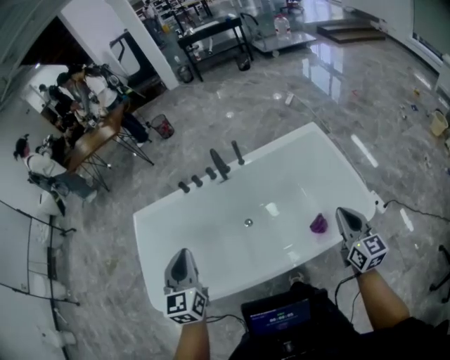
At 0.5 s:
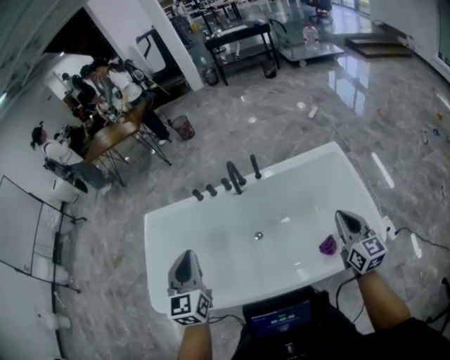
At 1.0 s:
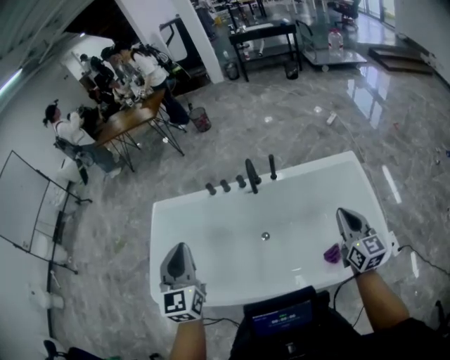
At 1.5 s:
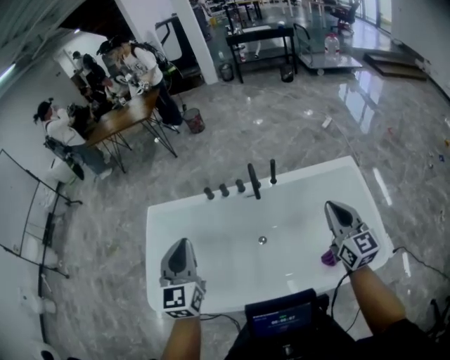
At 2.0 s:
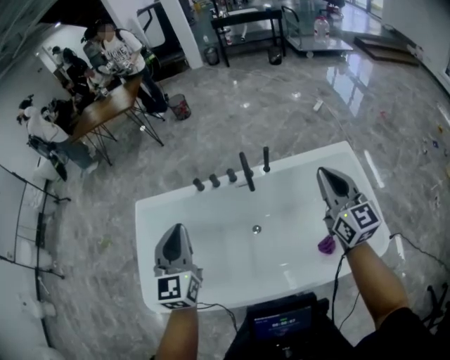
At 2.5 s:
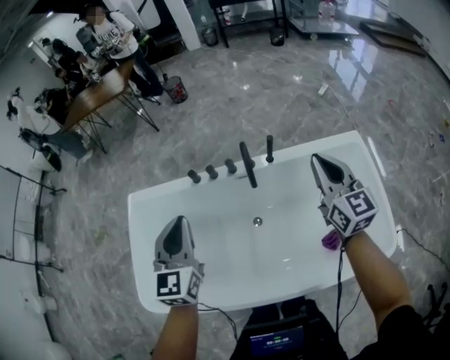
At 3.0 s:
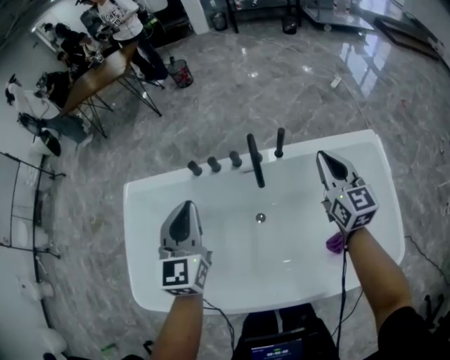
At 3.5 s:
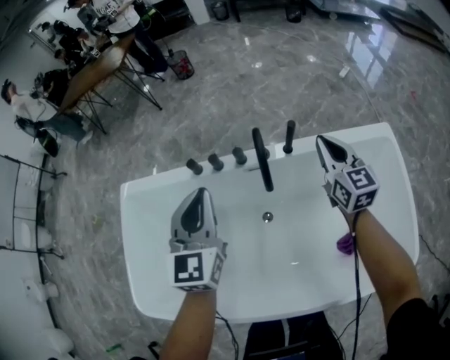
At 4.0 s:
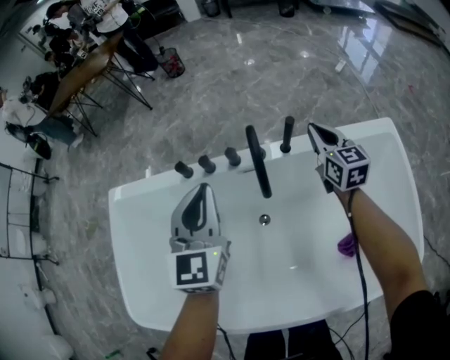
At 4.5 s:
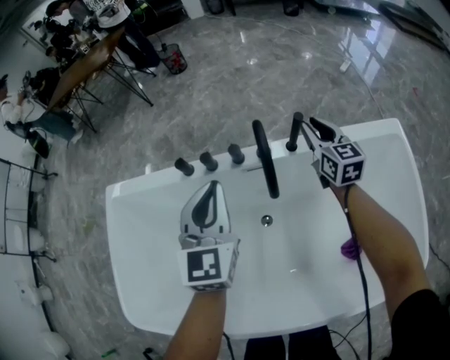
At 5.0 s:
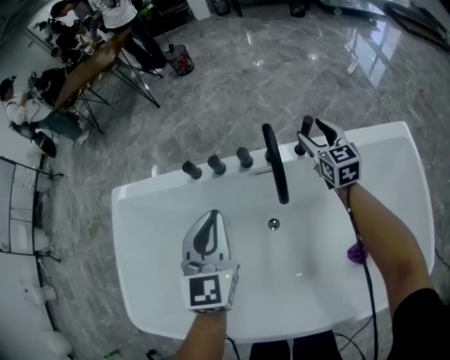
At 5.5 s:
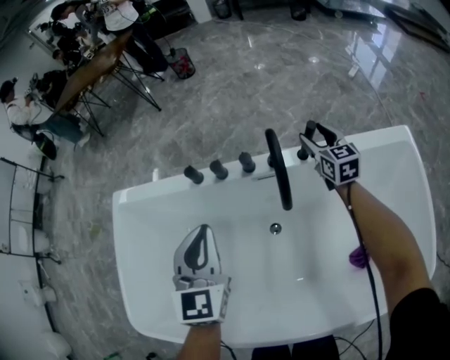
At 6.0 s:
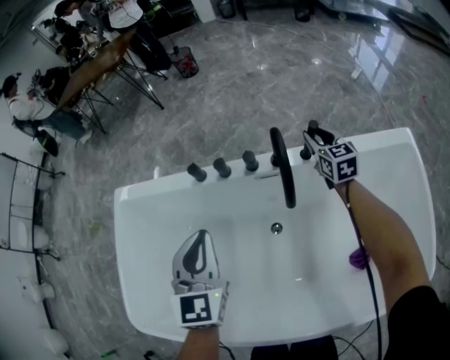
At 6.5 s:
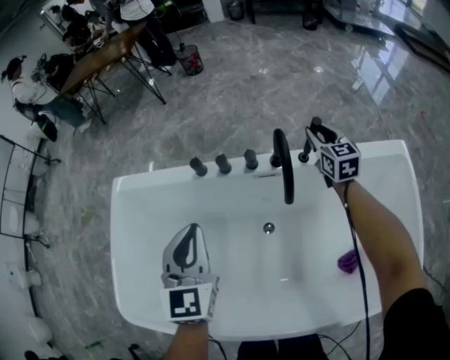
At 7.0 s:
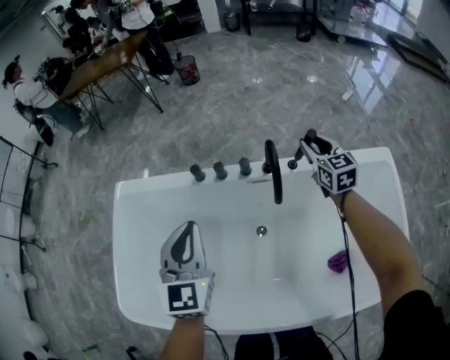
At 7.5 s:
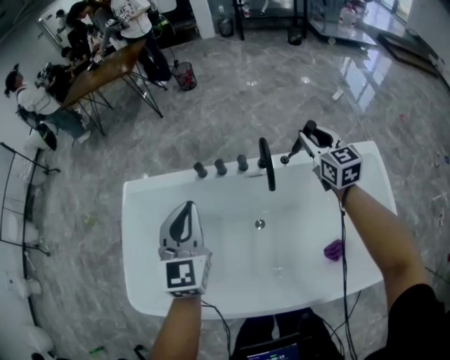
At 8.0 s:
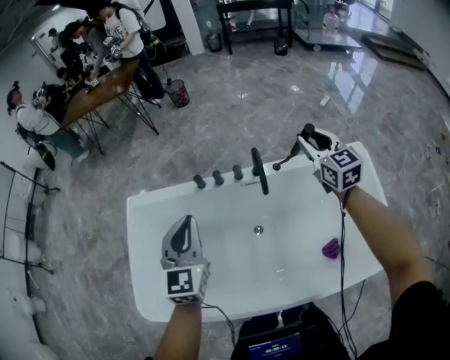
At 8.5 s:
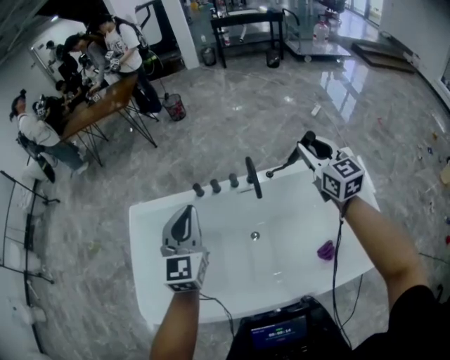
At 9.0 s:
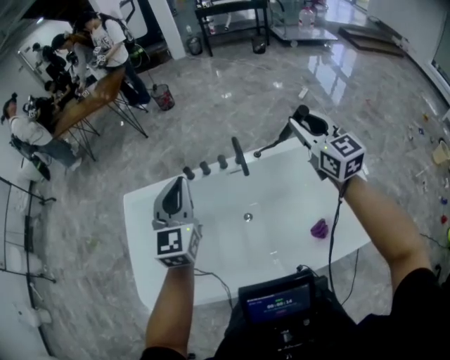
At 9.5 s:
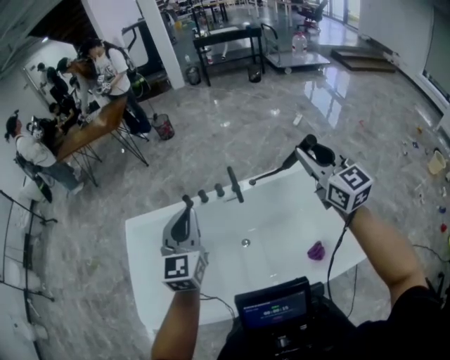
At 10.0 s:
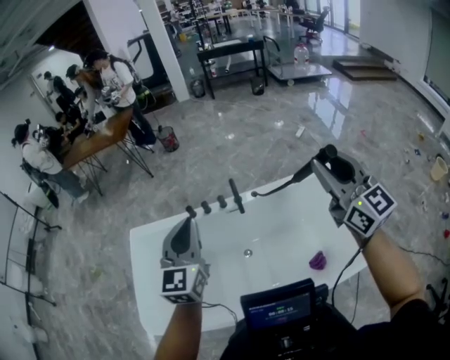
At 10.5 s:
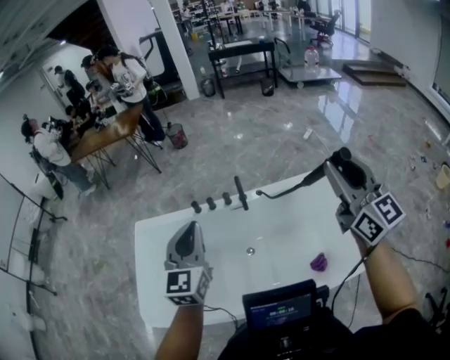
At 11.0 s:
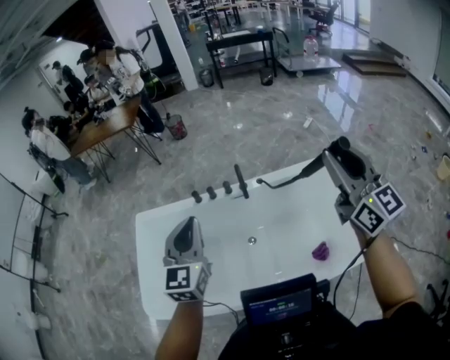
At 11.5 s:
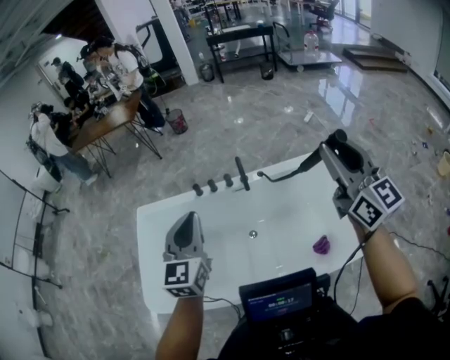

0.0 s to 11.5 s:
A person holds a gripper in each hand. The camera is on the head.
0.0 to 2.0 s: The right gripper moves forward and to the left, approximately 30 cm. The left gripper heads forward, covering about 15 cm.
2.0 to 4.0 s: The right gripper shifts some 50 cm downward and forward. Meanwhile the left gripper moves downward, forward and to the right, roughly 35 cm.
4.0 to 6.0 s: The left gripper moves to the left, downward and backward, some 10 cm, while the right gripper moves downward and forward, approximately 10 cm, and opens its fingers.
6.0 to 7.5 s: The right gripper goes about 25 cm upward and backward. The left gripper shifts roughly 15 cm upward.
7.5 to 9.5 s: The right gripper travels upward and backward by some 35 cm. Meanwhile the left gripper shifts about 15 cm upward and backward.
9.5 to 11.5 s: The right gripper moves backward and upward, about 15 cm, while the left gripper moves backward, approximately 10 cm.

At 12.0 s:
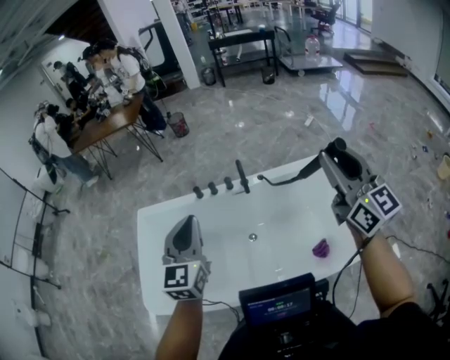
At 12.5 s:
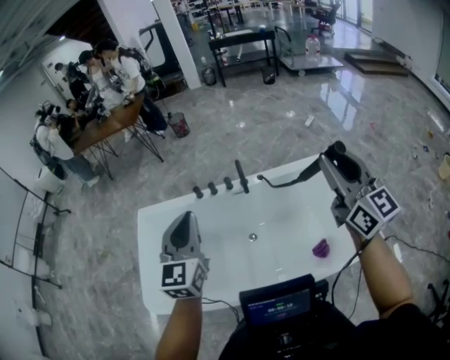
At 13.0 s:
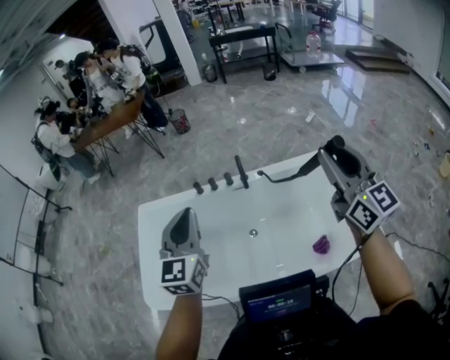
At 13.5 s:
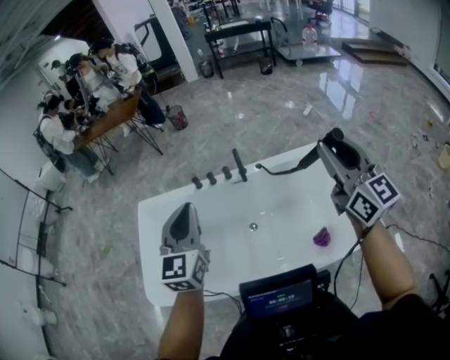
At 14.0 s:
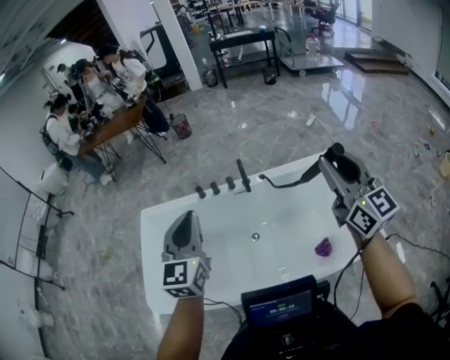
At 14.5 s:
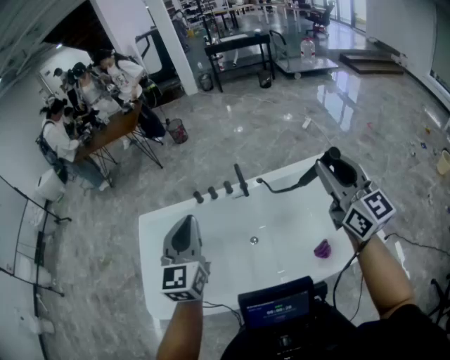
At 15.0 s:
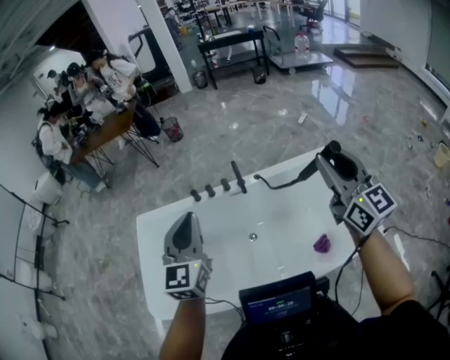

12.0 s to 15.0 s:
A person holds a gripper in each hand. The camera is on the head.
12.0 to 15.0 s: The grippers move only a little.

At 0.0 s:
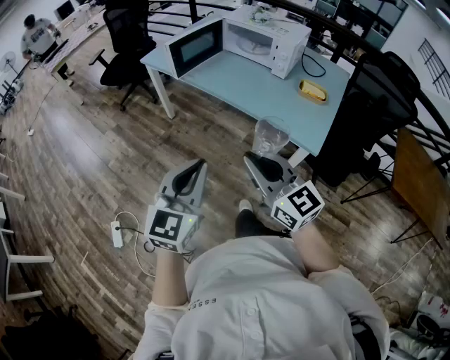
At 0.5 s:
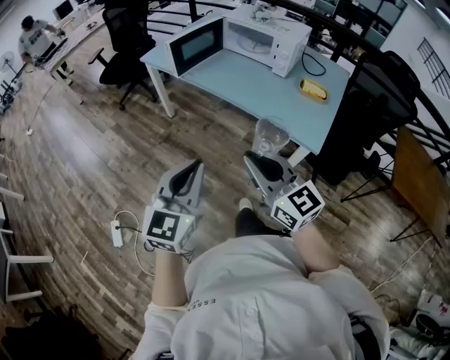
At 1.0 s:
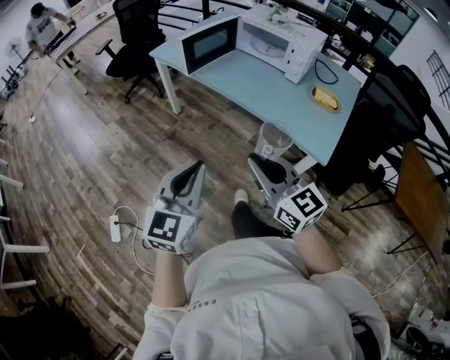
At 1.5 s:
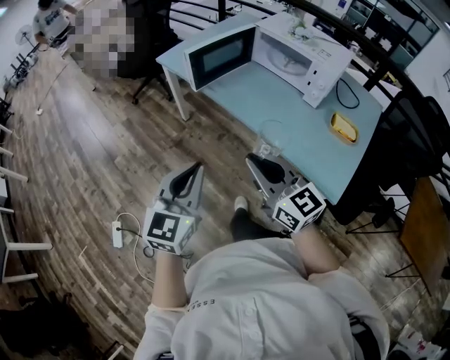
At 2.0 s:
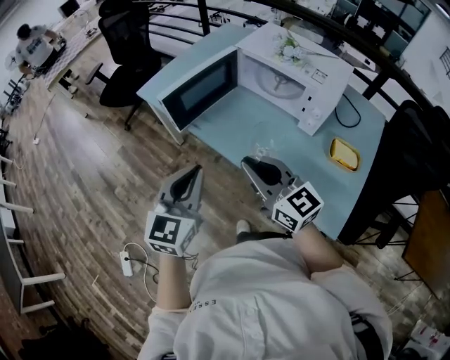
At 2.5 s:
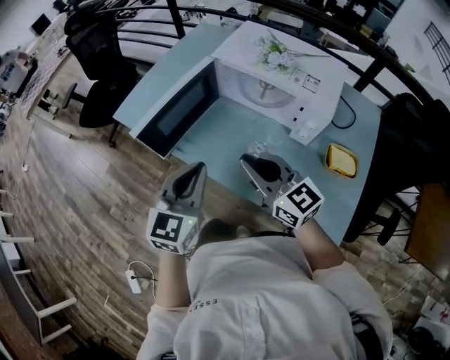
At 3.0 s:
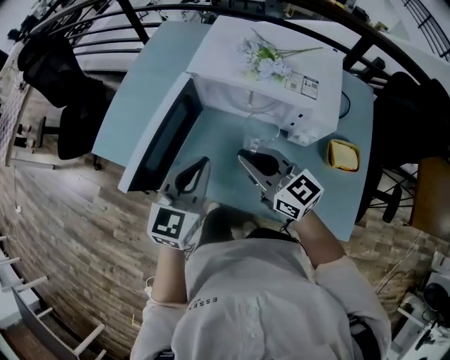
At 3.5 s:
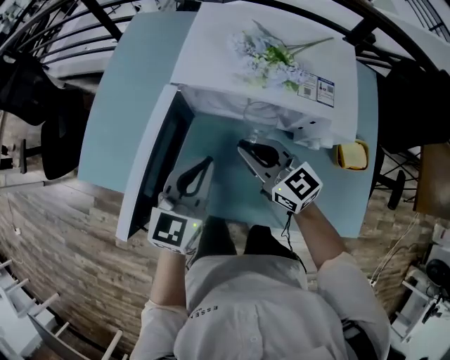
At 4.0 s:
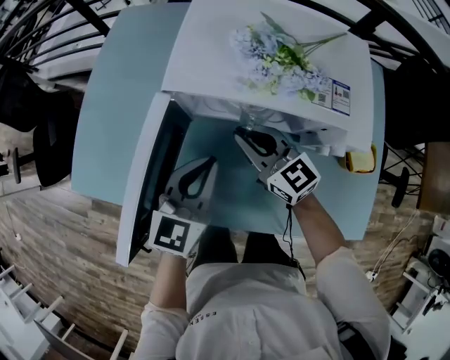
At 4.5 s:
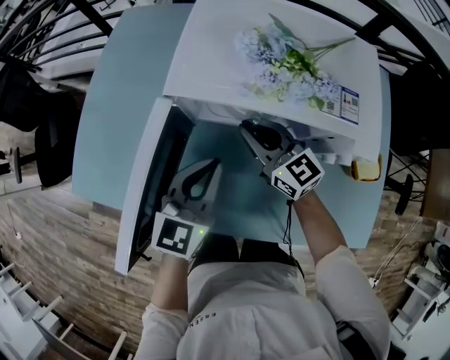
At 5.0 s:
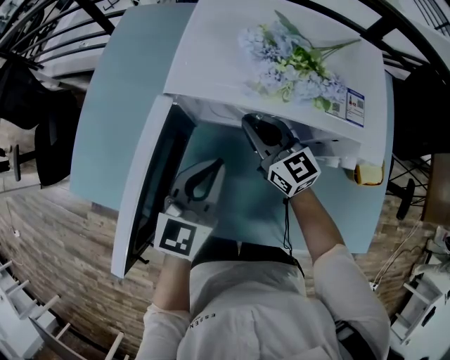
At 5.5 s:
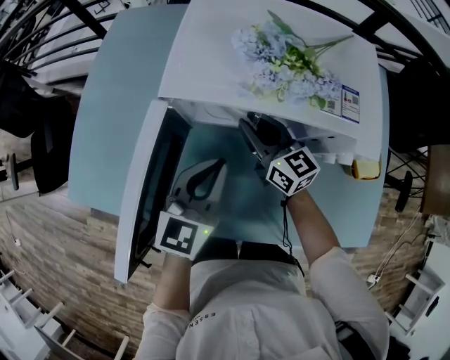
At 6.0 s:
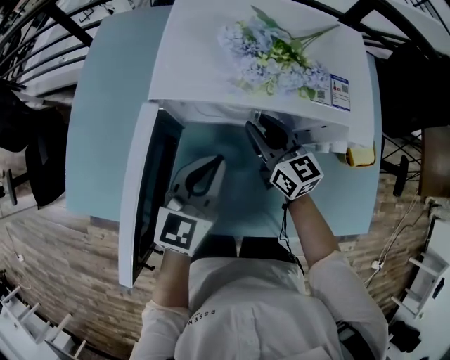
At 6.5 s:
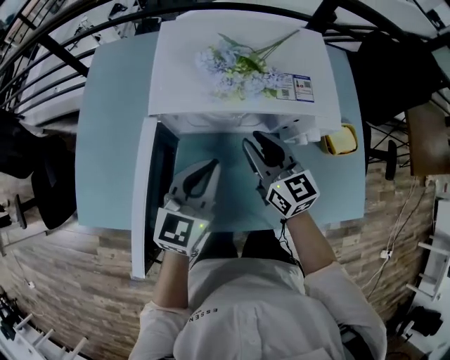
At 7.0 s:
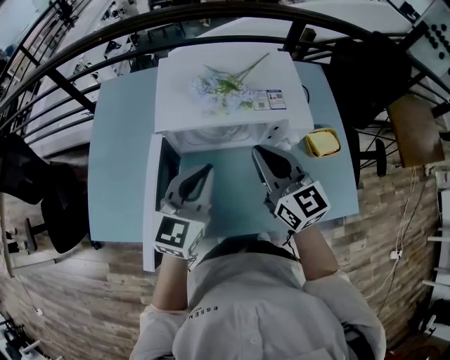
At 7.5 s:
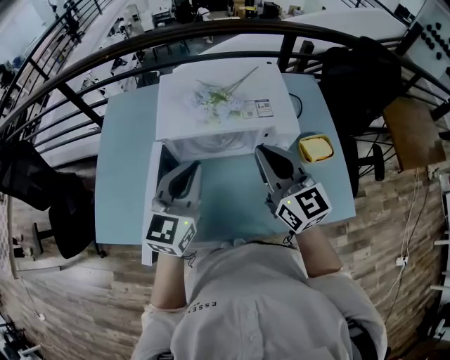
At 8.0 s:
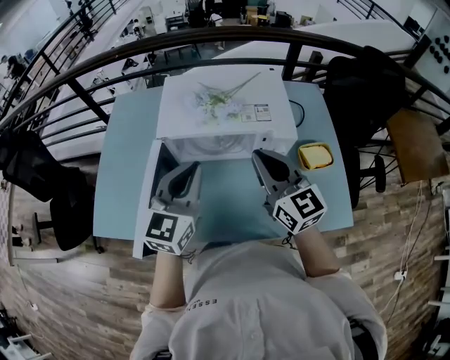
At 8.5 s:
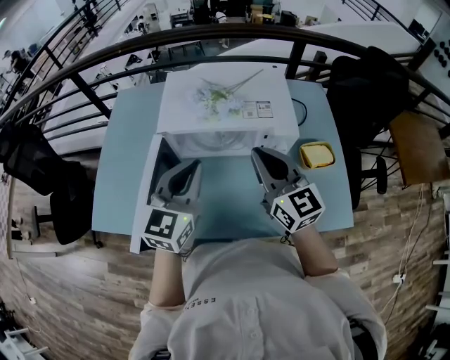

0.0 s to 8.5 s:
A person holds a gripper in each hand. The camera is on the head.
0.0 to 2.0 s: Both grippers move forward, approximately 35 cm.
2.0 to 4.0 s: The right gripper changes place by some 40 cm, and turns by some 20 degrees. The left gripper moves approximately 40 cm, and changes its angle by some 30 degrees.
4.0 to 6.5 s: The right gripper is displaced to the right by roughly 5 cm, swivels approximately 30 degrees, and opens.
6.5 to 8.5 s: The right gripper goes roughly 15 cm upward and backward, and closes its fingers. Meanwhile the left gripper is displaced upward by about 10 cm.

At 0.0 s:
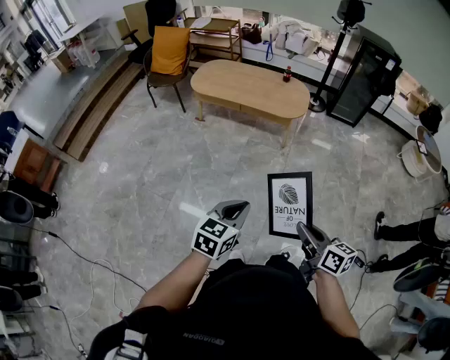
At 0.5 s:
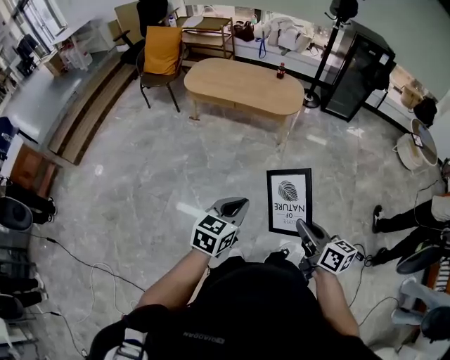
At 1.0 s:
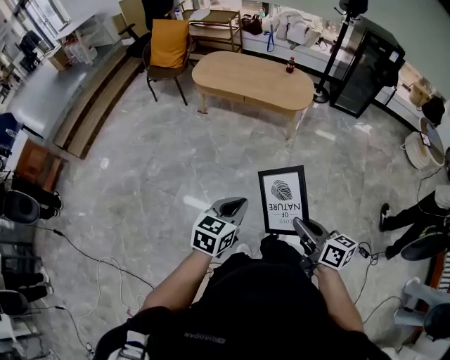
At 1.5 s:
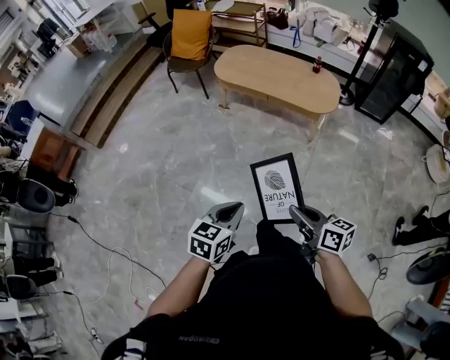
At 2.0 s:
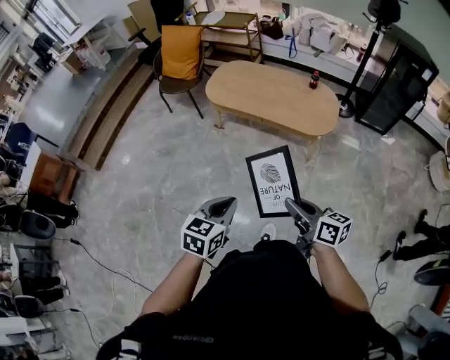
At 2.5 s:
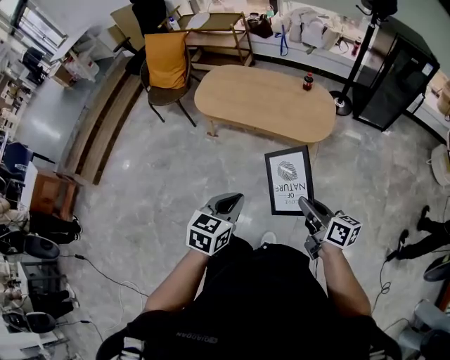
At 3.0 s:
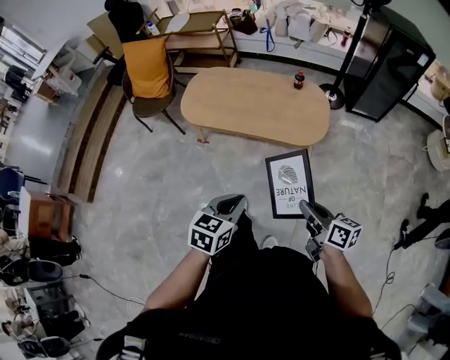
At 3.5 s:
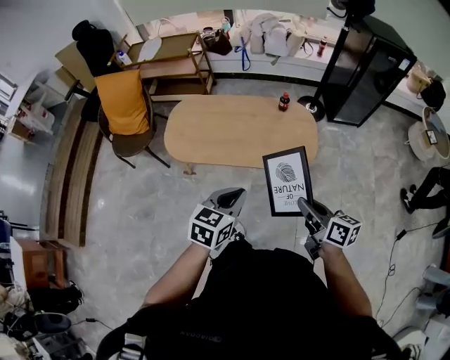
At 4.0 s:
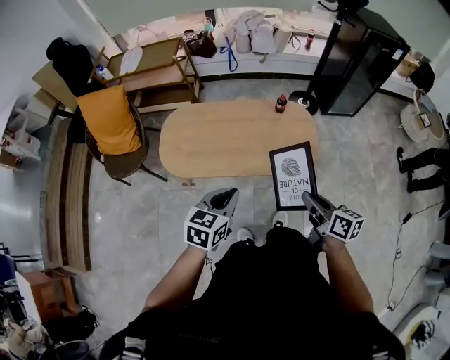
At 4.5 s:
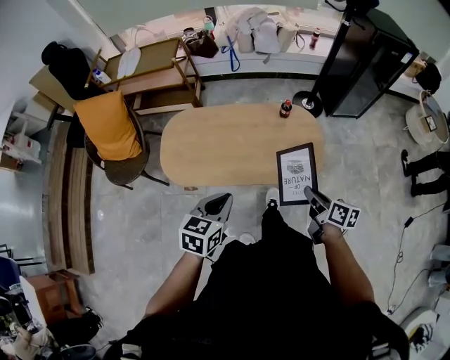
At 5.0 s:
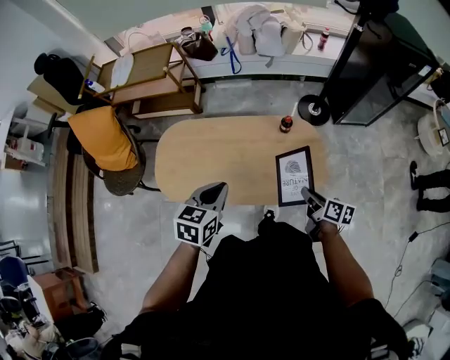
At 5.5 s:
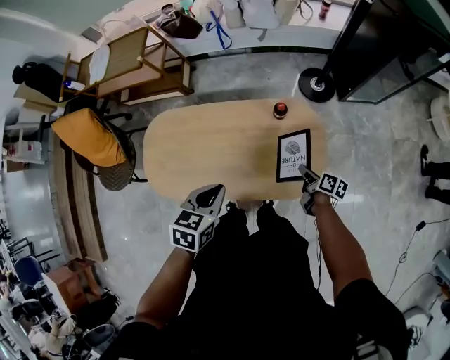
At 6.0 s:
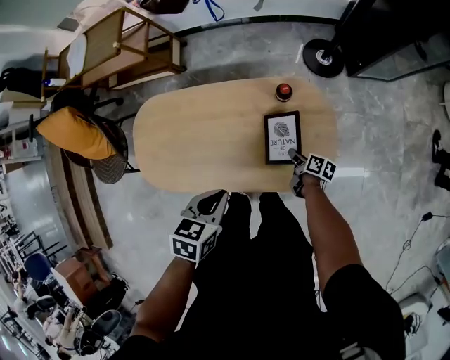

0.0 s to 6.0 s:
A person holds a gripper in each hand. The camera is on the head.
0.0 to 2.0 s: Both grippers move forward, roughly 30 cm.
2.0 to 4.0 s: The left gripper moves some 50 cm, and turns by about 20 degrees. The right gripper shifts by about 40 cm, and turns by some 30 degrees.
4.0 to 6.0 s: The left gripper goes approximately 30 cm forward and downward, and swivels about 20 degrees. Meanwhile the right gripper shifts some 60 cm downward and forward, and swivels about 40 degrees.
